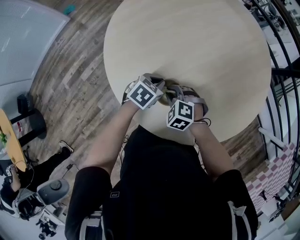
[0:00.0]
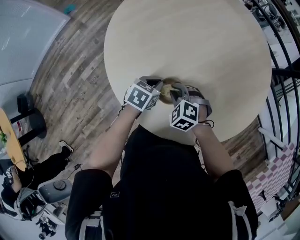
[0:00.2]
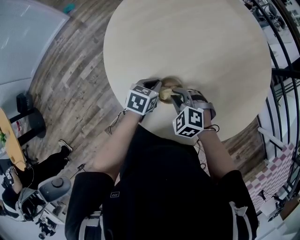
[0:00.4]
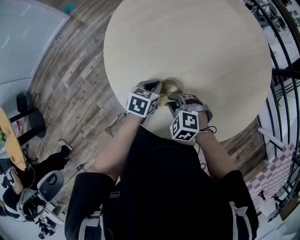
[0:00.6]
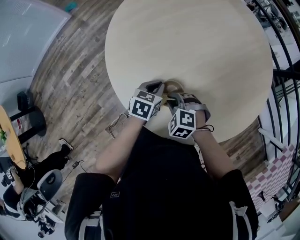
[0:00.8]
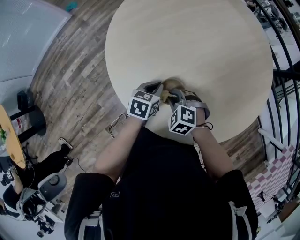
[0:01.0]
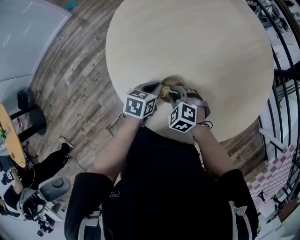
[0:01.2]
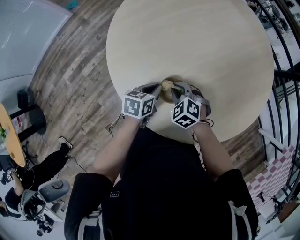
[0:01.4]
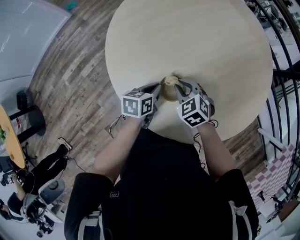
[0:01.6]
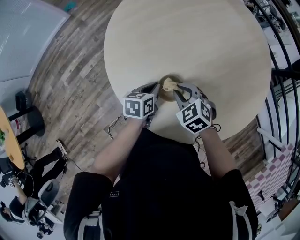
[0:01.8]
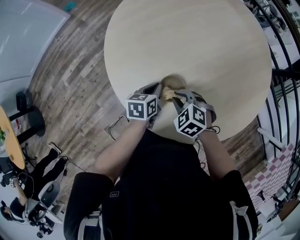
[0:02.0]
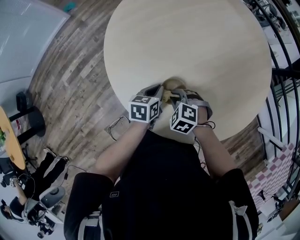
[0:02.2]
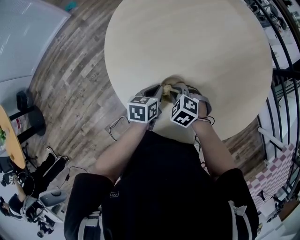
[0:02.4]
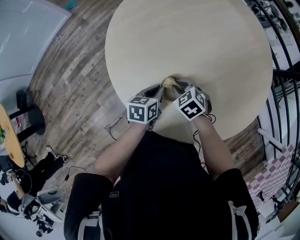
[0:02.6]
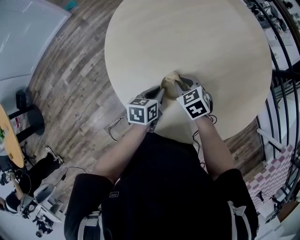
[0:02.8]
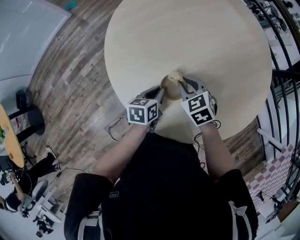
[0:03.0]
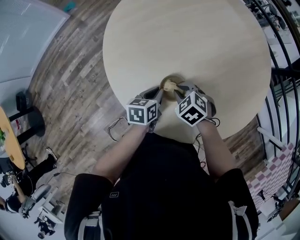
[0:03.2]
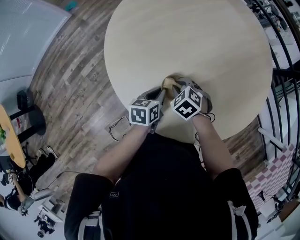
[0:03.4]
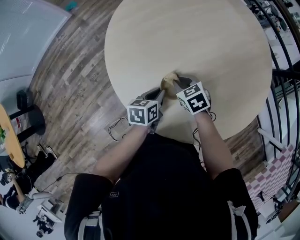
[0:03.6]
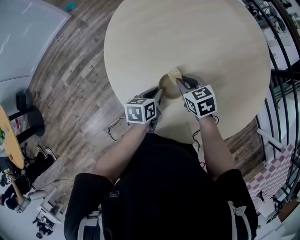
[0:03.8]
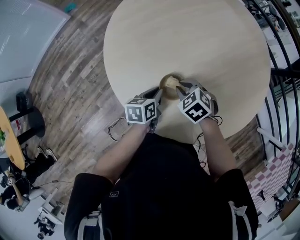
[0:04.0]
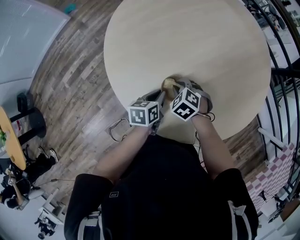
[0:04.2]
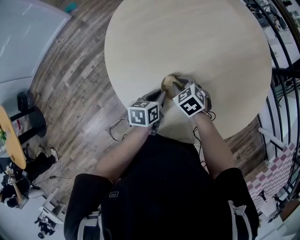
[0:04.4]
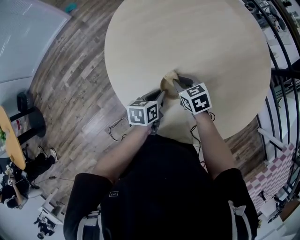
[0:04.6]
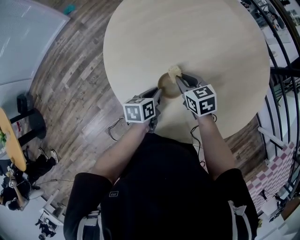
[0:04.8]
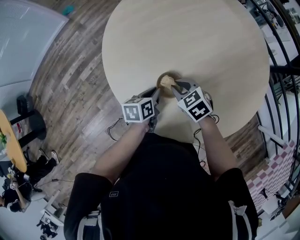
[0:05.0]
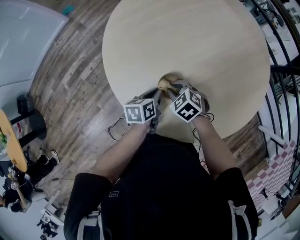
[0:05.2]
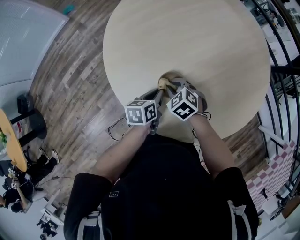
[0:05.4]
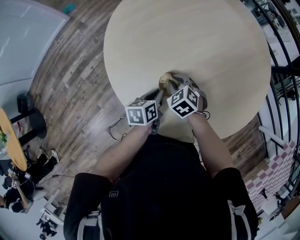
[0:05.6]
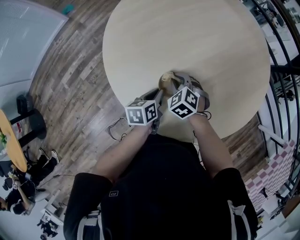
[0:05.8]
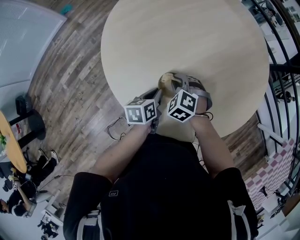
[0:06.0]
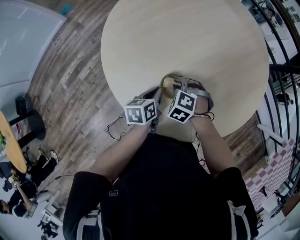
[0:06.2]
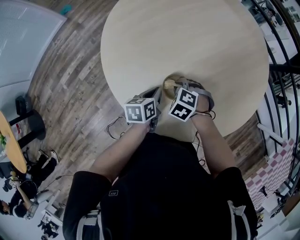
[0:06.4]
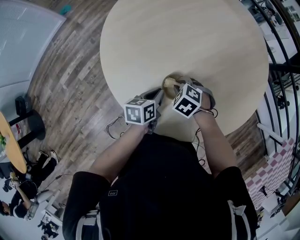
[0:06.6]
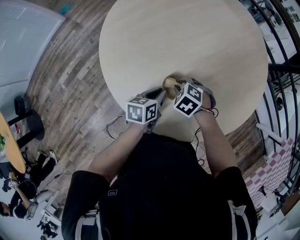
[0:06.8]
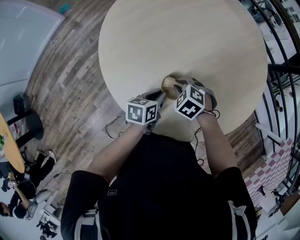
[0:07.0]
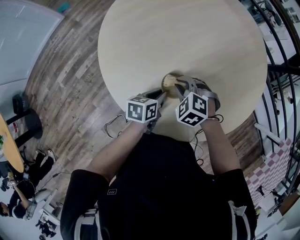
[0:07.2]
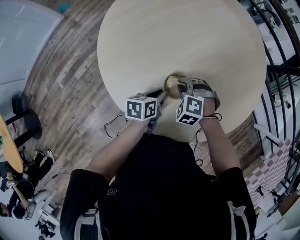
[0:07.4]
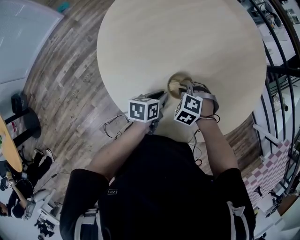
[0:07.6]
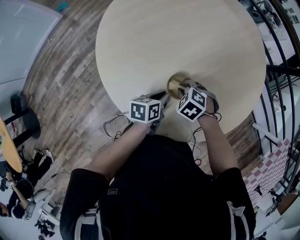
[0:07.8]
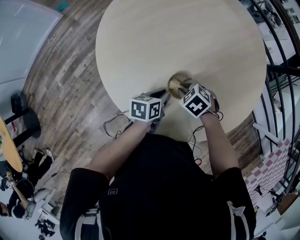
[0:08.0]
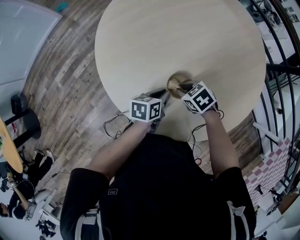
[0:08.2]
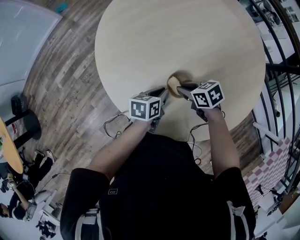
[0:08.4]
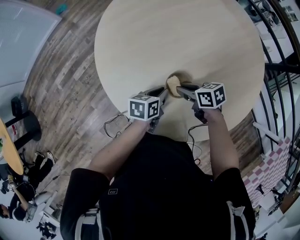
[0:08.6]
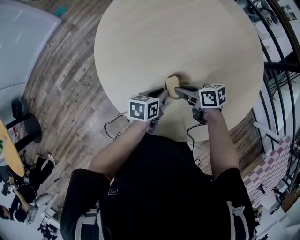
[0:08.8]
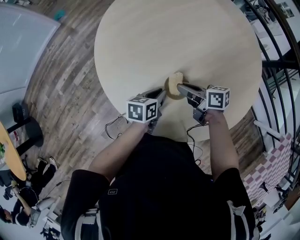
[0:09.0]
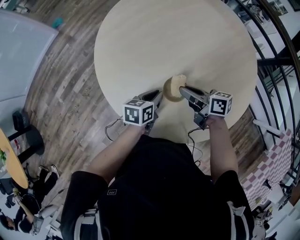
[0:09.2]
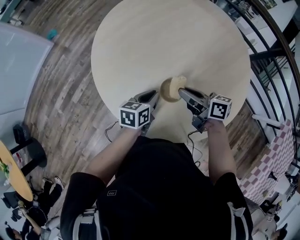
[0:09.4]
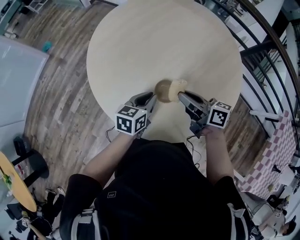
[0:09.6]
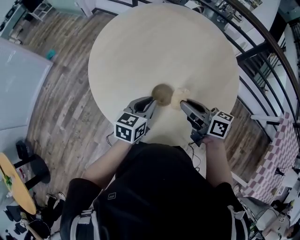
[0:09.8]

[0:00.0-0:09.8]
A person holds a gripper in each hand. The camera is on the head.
0:00.0 to 0:01.4: The left gripper rotates about 30 degrees.
0:01.4 to 0:02.8: The right gripper swivels approximately 20 degrees.
0:02.8 to 0:04.2: The right gripper swivels approximately 20 degrees.
0:07.0 to 0:08.4: The right gripper turns by roughly 50 degrees.
0:08.4 to 0:09.8: Both grippers move upward, about 15 cm. The left gripper changes its angle by about 40 degrees, while the right gripper points its fingers some 40 degrees further upward.

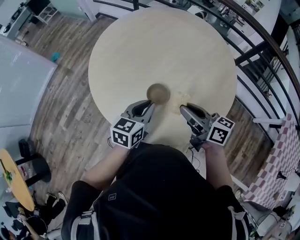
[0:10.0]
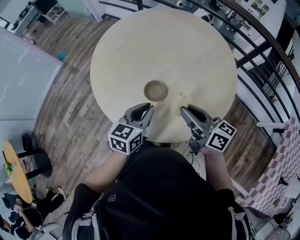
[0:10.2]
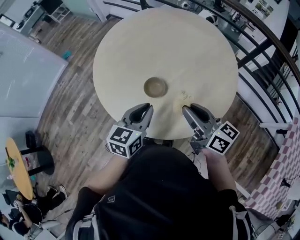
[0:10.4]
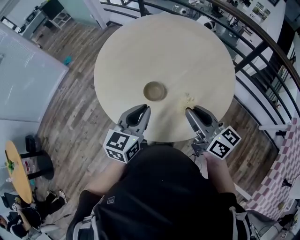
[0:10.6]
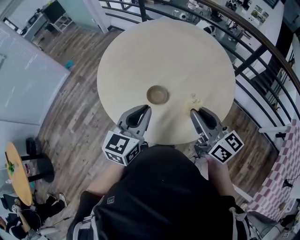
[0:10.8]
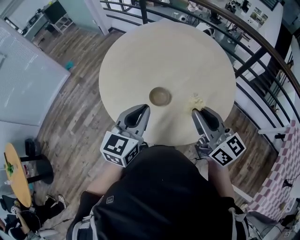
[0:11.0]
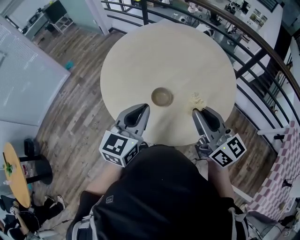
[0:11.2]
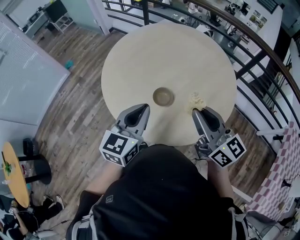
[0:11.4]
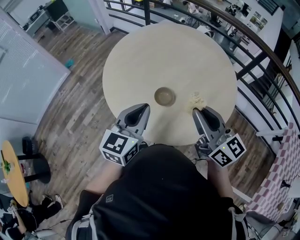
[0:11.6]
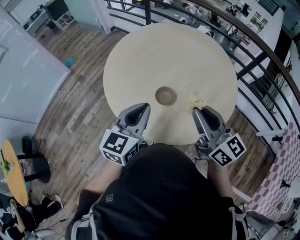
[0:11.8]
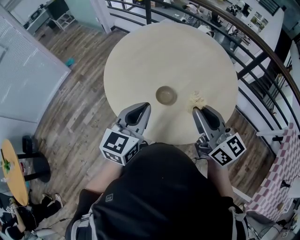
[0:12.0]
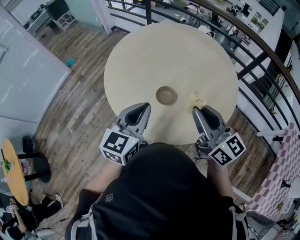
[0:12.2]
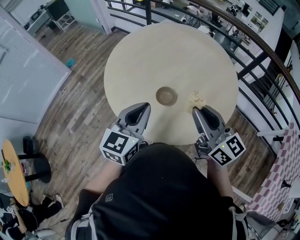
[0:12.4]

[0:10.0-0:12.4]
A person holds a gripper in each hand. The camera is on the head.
0:10.0 to 0:11.2: Both grippers travel together upward and backward, about 15 cm. The right gripper rotates approximately 30 degrees.
0:11.2 to 0:12.4: There are only small adjustments of the grippers.

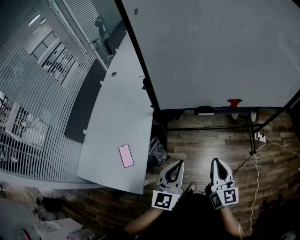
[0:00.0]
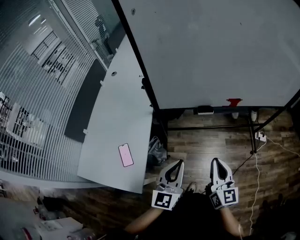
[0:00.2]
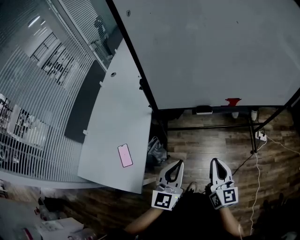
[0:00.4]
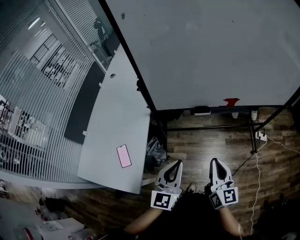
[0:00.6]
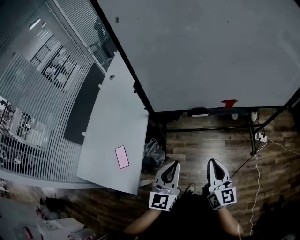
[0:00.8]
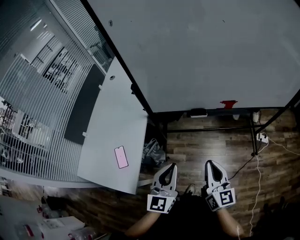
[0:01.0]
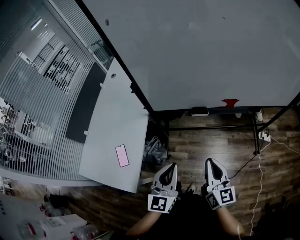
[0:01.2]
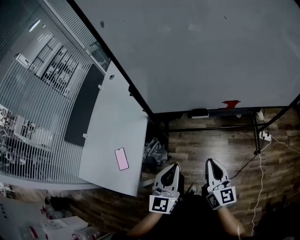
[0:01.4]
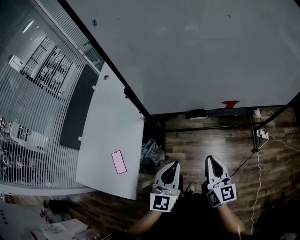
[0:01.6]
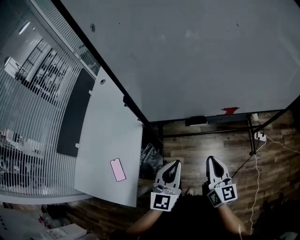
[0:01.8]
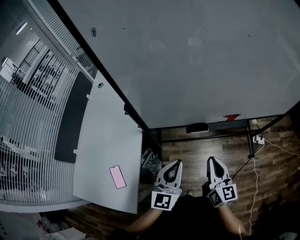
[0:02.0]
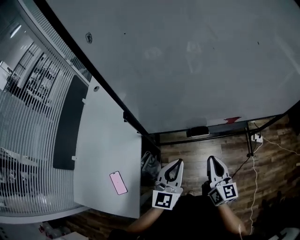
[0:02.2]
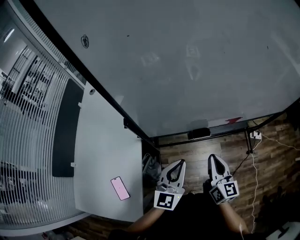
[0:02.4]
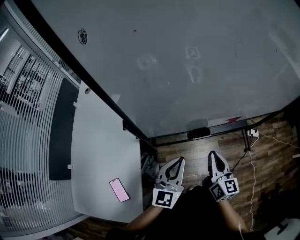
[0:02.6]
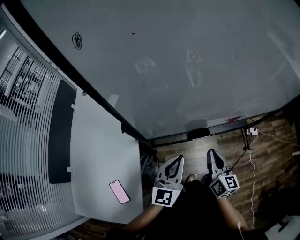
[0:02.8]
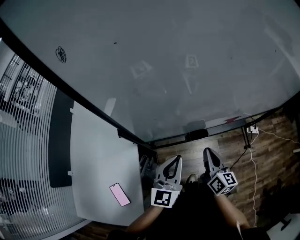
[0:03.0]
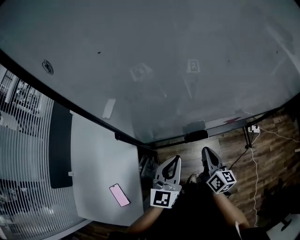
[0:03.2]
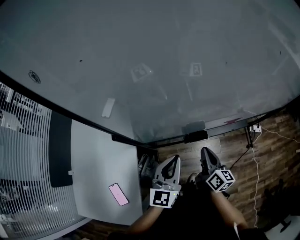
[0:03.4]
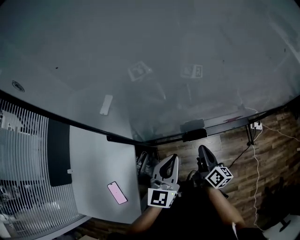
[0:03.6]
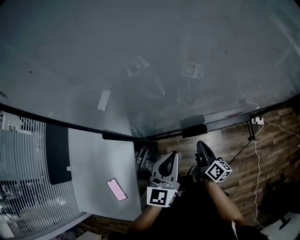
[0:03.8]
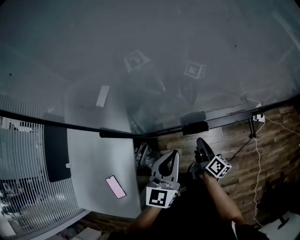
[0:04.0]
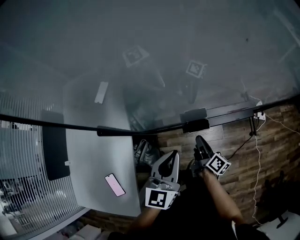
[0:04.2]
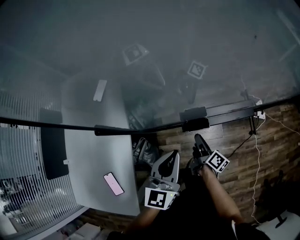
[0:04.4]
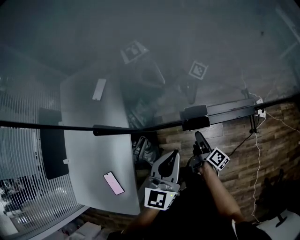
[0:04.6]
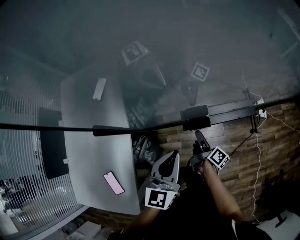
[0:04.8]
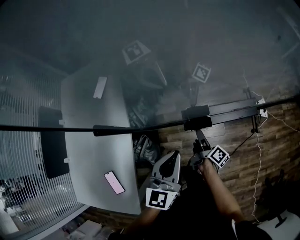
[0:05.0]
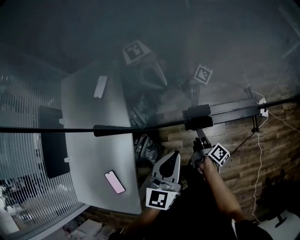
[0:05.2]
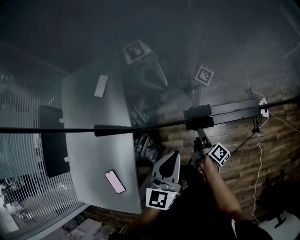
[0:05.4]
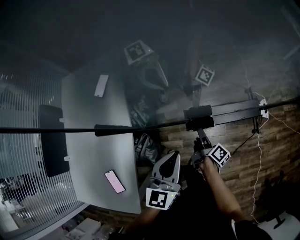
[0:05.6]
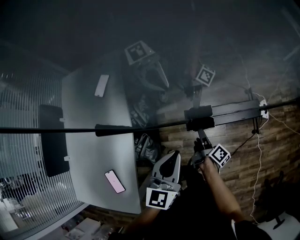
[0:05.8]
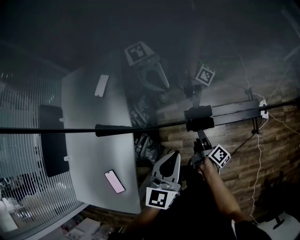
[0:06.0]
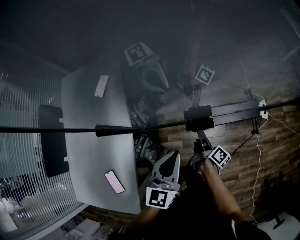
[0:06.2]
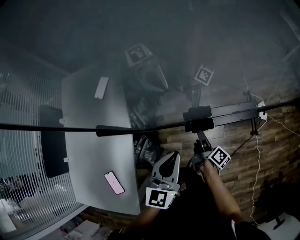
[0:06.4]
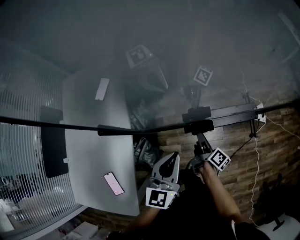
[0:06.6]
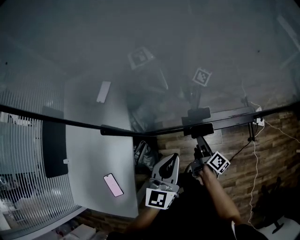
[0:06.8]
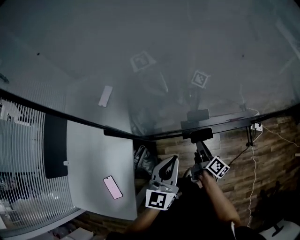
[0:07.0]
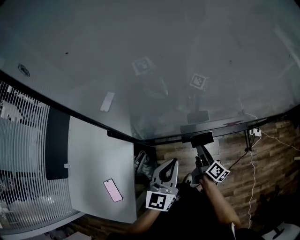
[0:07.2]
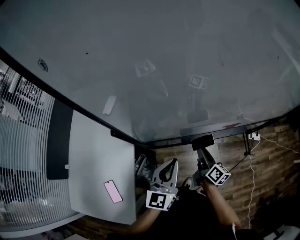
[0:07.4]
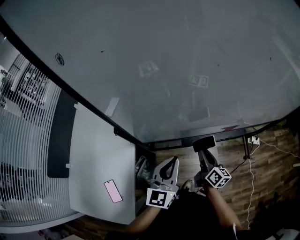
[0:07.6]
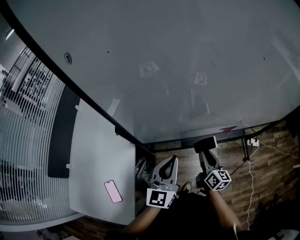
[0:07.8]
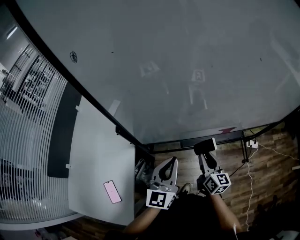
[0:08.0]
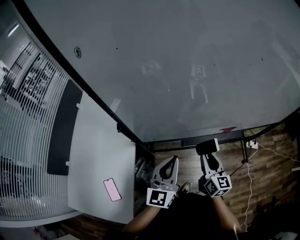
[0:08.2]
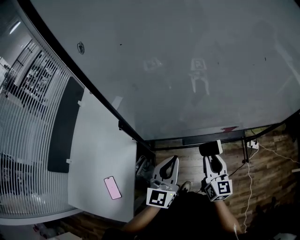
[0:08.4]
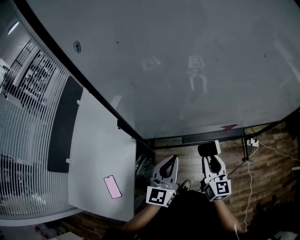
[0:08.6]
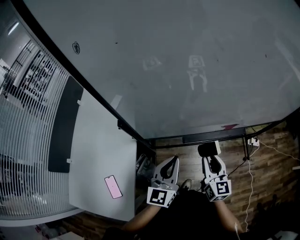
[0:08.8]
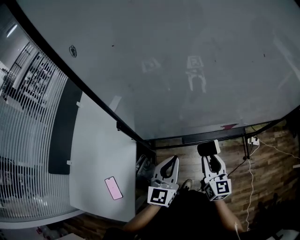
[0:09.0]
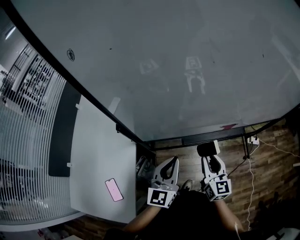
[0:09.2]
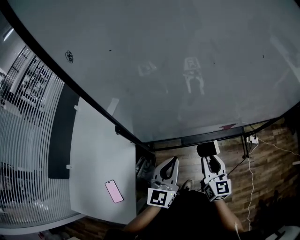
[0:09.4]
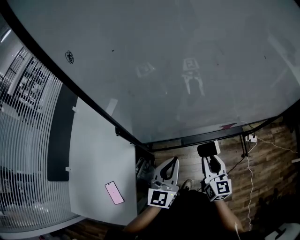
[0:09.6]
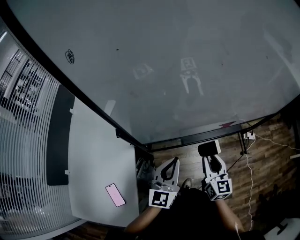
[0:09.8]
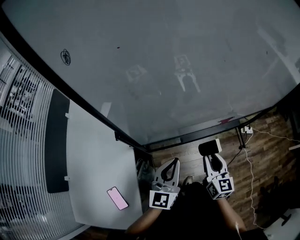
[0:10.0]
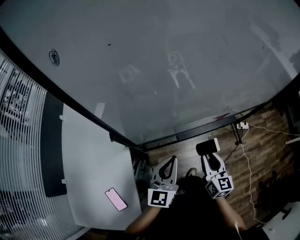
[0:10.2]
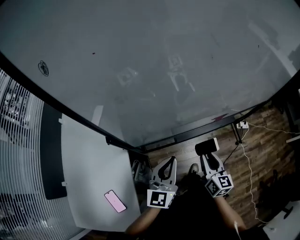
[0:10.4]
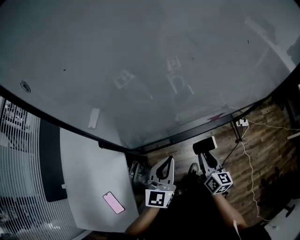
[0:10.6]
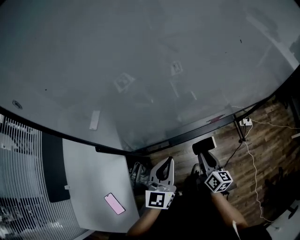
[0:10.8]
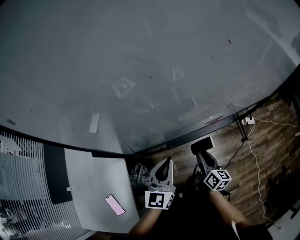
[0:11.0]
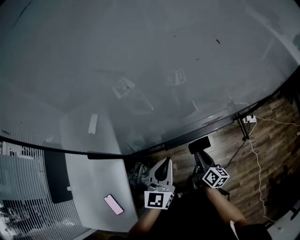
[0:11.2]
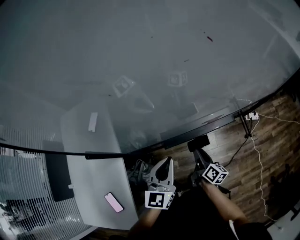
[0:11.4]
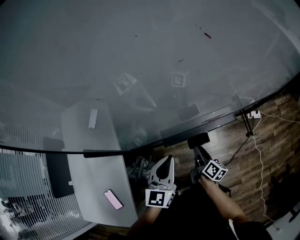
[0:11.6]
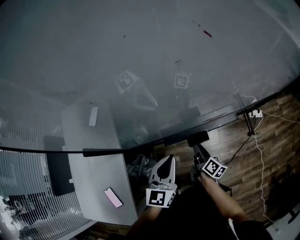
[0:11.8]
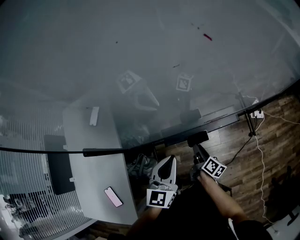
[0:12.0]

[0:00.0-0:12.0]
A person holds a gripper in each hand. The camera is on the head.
0:00.0 to 0:01.6: The grippers both shift forward by roughly 5 cm.
0:01.6 to 0:03.0: The two grippers go about 15 cm forward.
0:03.0 to 0:04.4: The right gripper moves downward, some 15 cm, and changes its angle by approximately 40 degrees.
0:04.4 to 0:06.0: The grippers move only a little.
0:06.0 to 0:07.6: The right gripper moves upward, about 10 cm, and swivels roughly 30 degrees. Meanwhile the left gripper travels upward by approximately 5 cm.
0:07.6 to 0:09.0: The right gripper shifts roughly 10 cm upward, and changes its angle by about 40 degrees.
0:09.0 to 0:10.4: The grippers move only a little.
0:10.4 to 0:12.0: The left gripper heads to the right and forward, covering some 10 cm. The right gripper goes some 20 cm downward and forward, and rotates around the line of its fingers by some 40 degrees, clockwise from behind.
